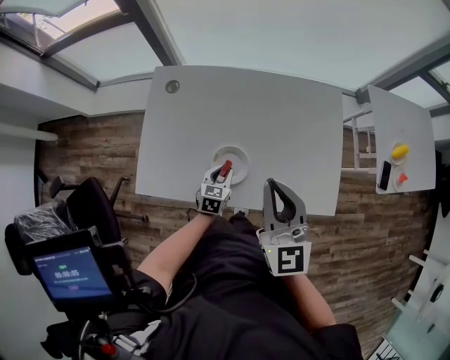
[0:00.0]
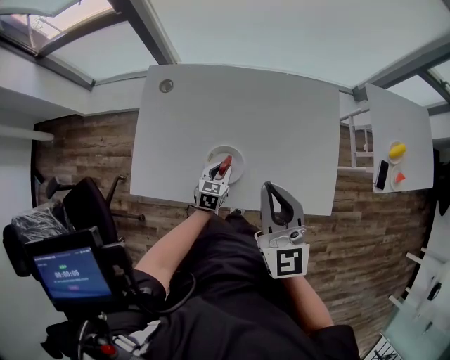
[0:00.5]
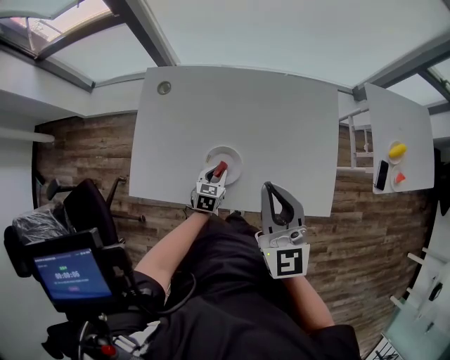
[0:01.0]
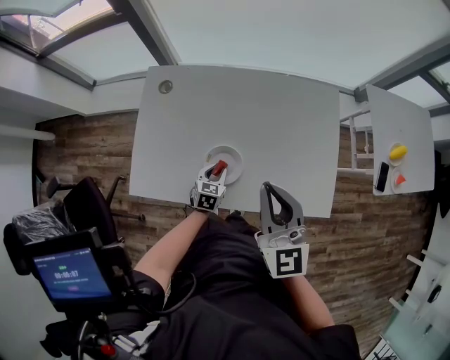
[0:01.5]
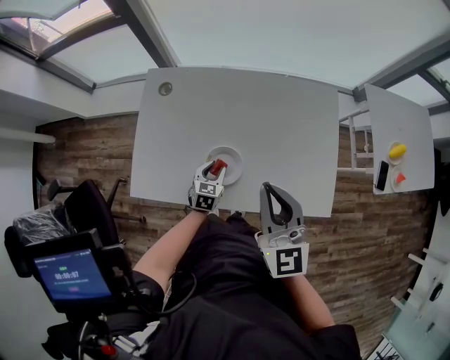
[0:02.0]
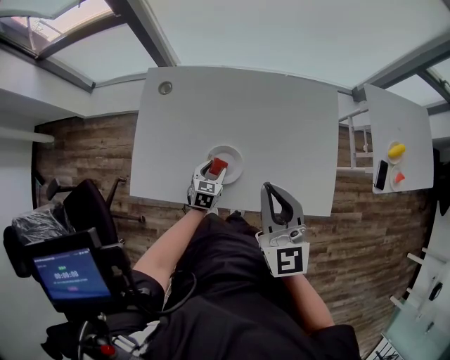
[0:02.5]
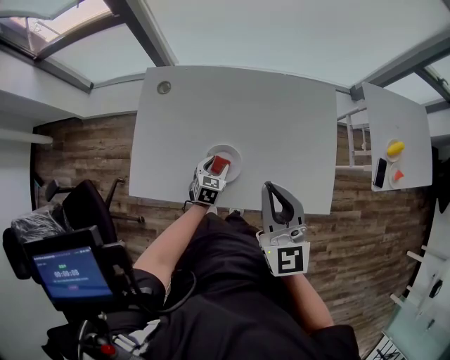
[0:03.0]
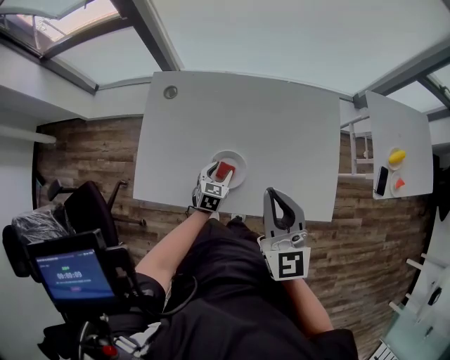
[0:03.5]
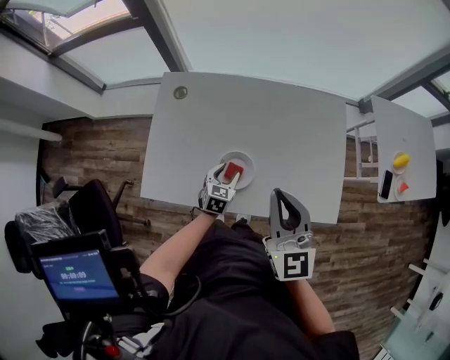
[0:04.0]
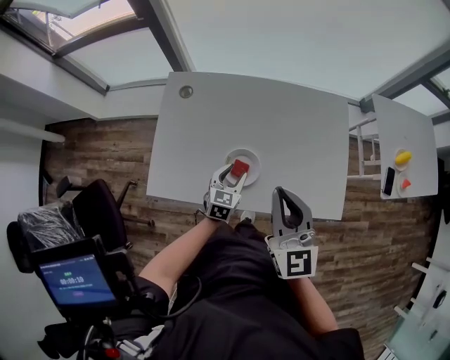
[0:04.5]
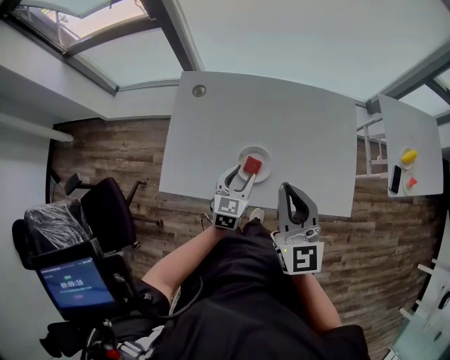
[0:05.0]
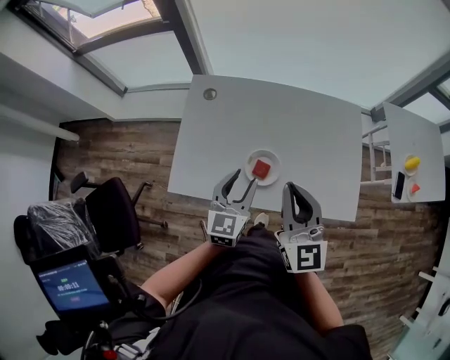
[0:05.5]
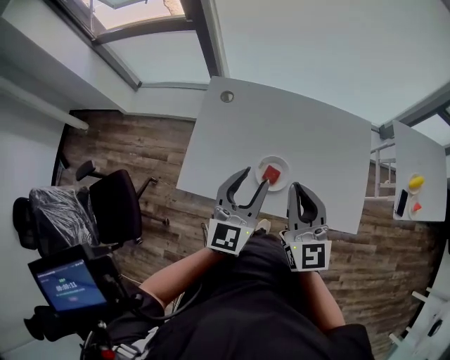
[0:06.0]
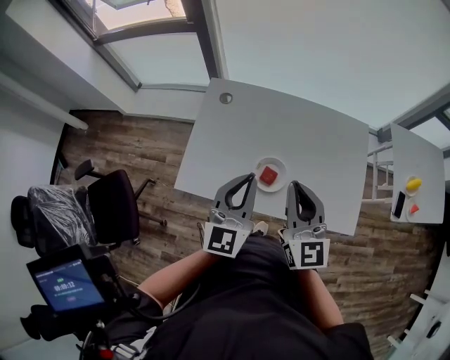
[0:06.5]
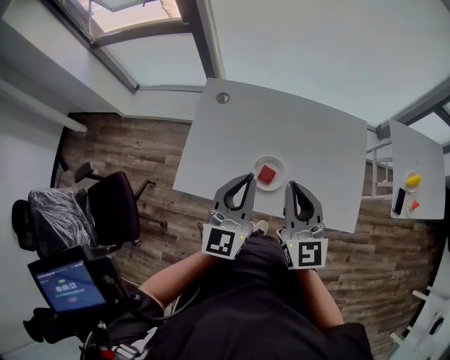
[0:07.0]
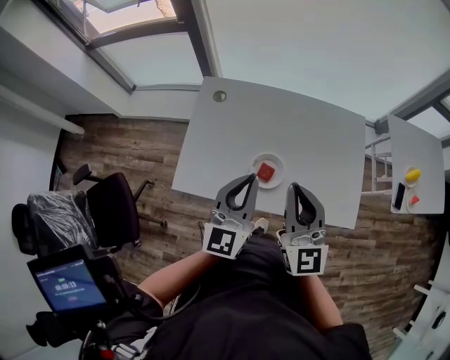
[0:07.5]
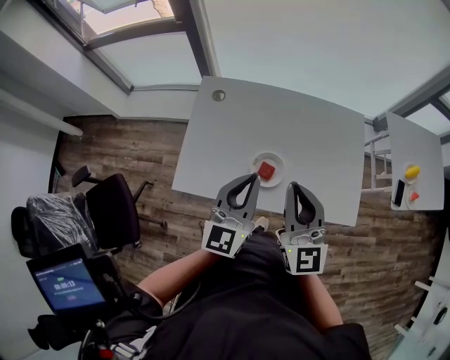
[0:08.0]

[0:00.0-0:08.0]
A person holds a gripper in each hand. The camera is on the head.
0:00.0 to 0:04.0: The grippers move only a little.
0:04.0 to 0:06.0: The right gripper shifts approximately 10 cm to the left. Meanwhile the left gripper moves upward, some 35 cm, and tilts its fingers about 40 degrees upward.
0:06.0 to 0:08.0: The left gripper closes.

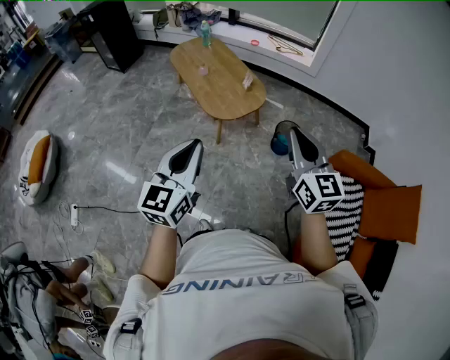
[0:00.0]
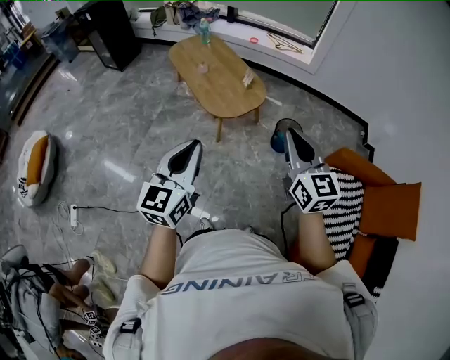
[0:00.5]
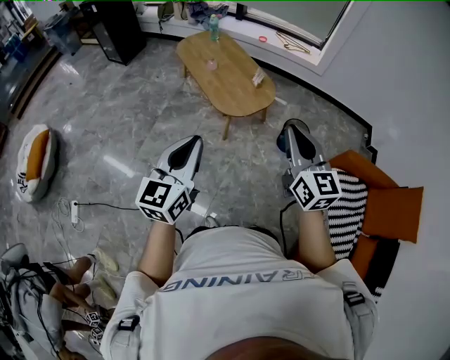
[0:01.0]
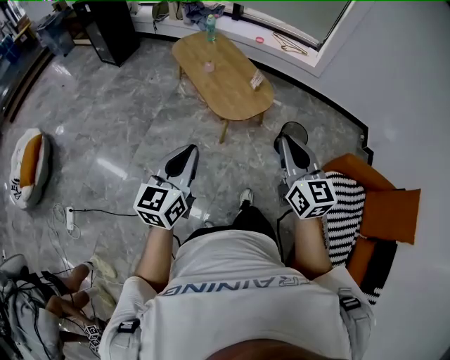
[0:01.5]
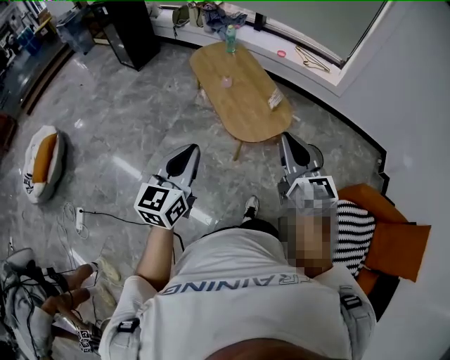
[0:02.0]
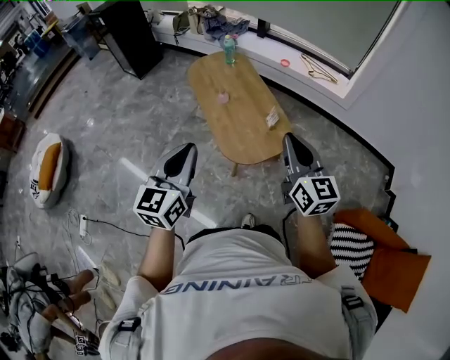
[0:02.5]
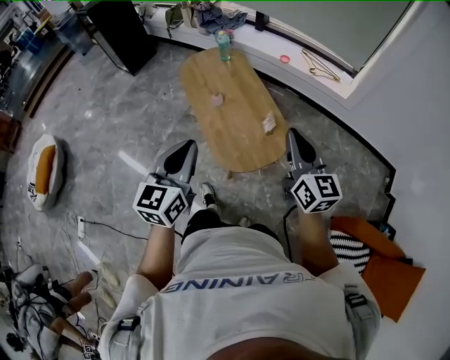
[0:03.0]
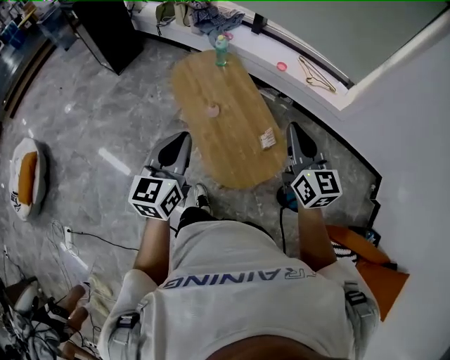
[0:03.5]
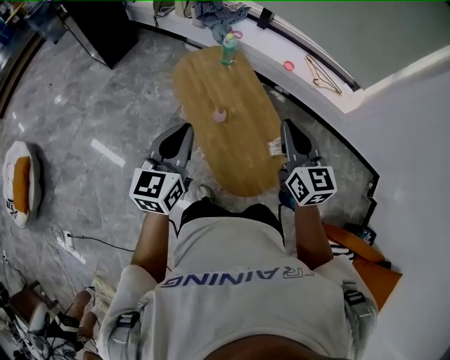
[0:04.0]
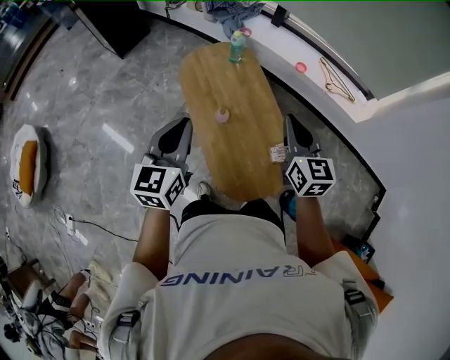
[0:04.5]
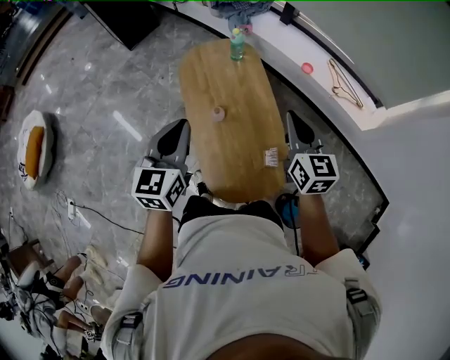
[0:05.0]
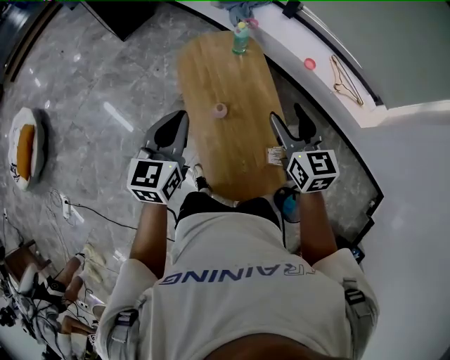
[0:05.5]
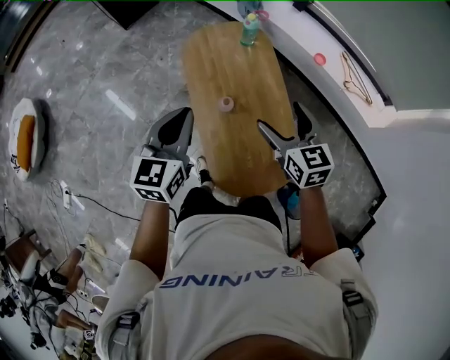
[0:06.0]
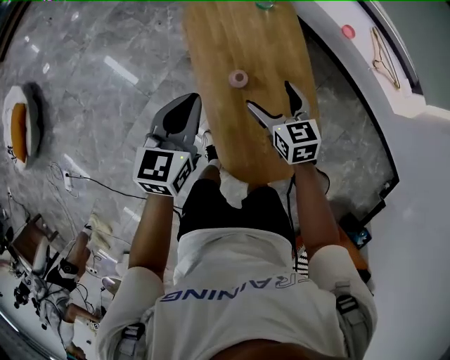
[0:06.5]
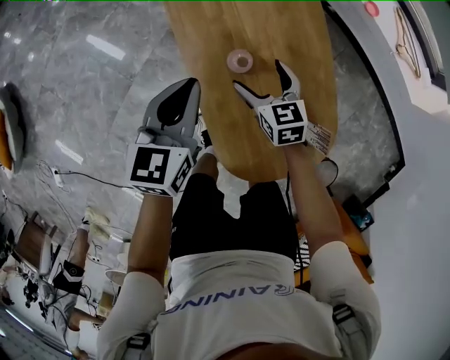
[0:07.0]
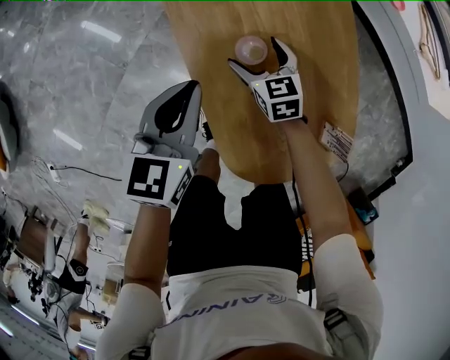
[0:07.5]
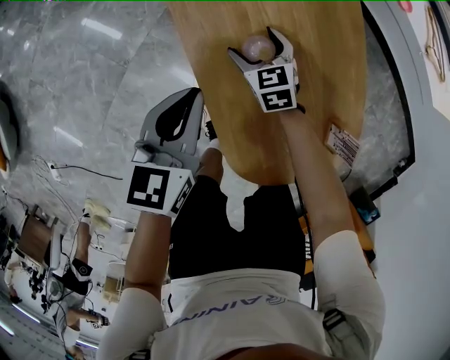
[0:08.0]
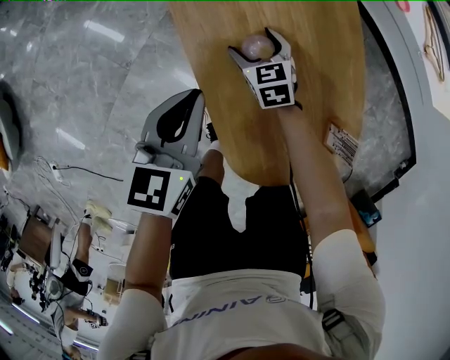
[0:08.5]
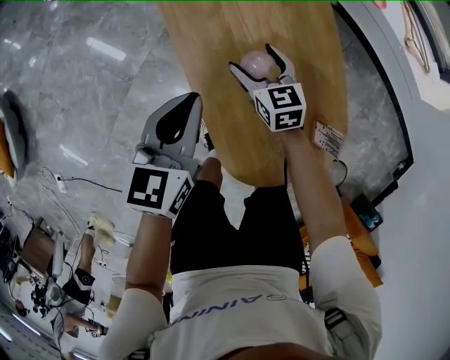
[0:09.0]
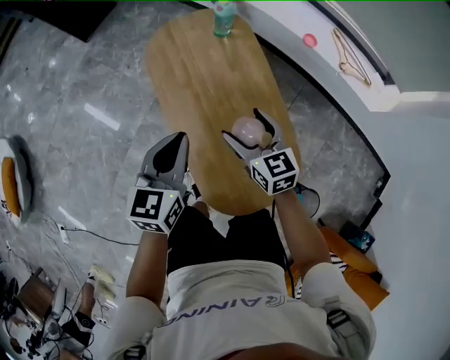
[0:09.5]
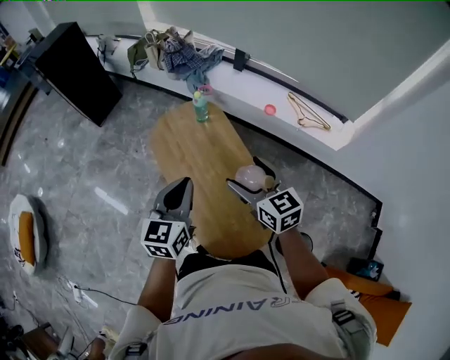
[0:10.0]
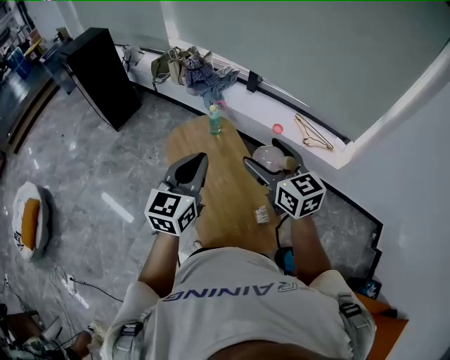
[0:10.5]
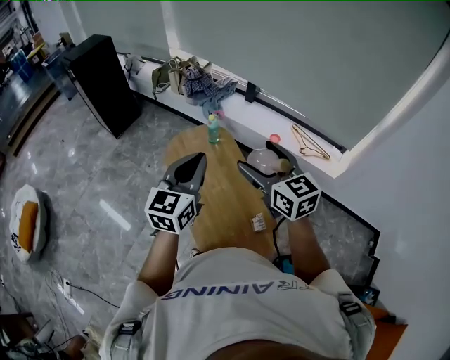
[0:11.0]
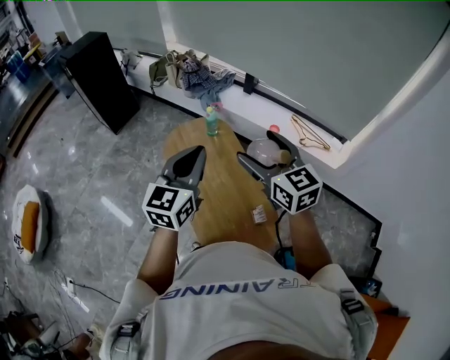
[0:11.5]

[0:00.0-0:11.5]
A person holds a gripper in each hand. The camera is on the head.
0:00.0 to 0:02.0: The two grippers go approximately 20 cm forward and to the left.
0:02.0 to 0:04.0: The pair of grippers is taken forward, approximately 50 cm.
0:04.0 to 0:06.0: The left gripper goes about 15 cm forward, downward and to the right, while the right gripper moves forward and downward, roughly 20 cm, rotates some 30 degrees, and opens up.
0:06.0 to 0:07.5: The two grippers go about 40 cm downward.
0:07.5 to 0:09.5: The grippers both shift upward by approximately 25 cm.
0:09.5 to 0:11.5: Both grippers travel together upward, roughly 35 cm. The left gripper changes its angle by approximately 20 degrees. Meanwhile the right gripper turns by some 20 degrees.

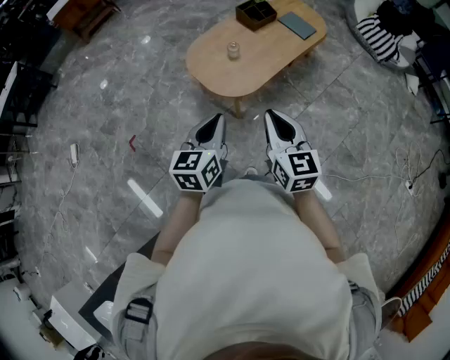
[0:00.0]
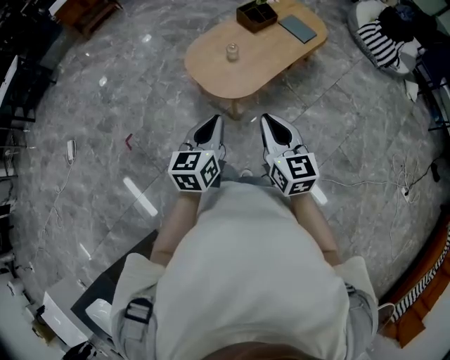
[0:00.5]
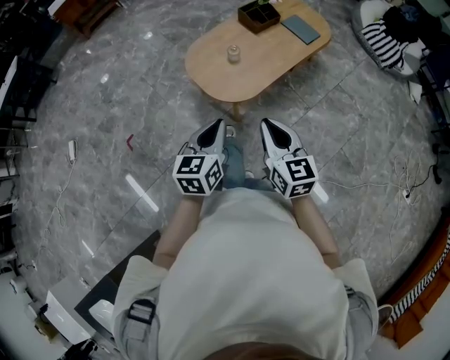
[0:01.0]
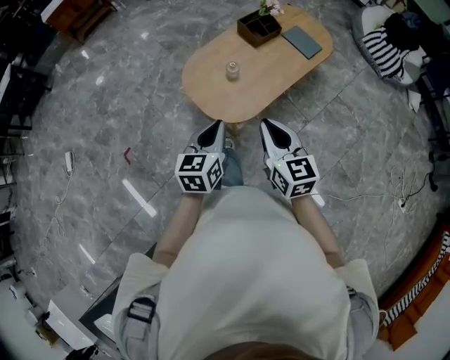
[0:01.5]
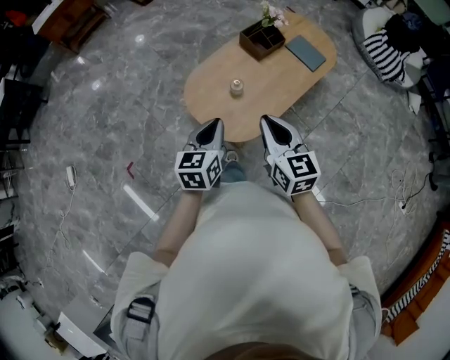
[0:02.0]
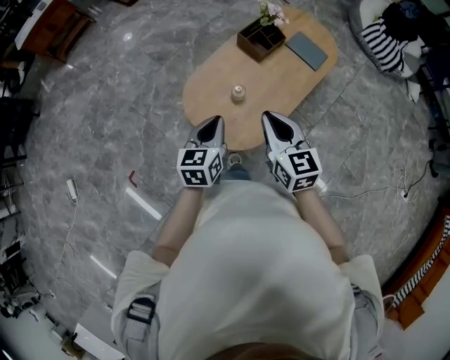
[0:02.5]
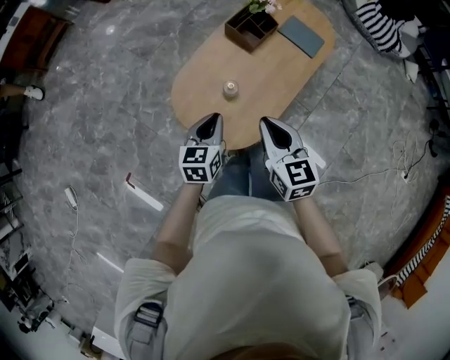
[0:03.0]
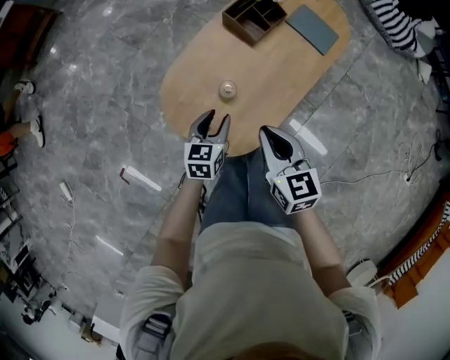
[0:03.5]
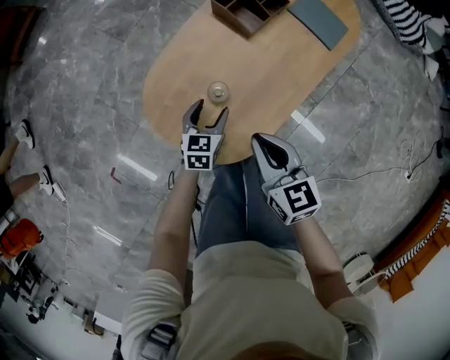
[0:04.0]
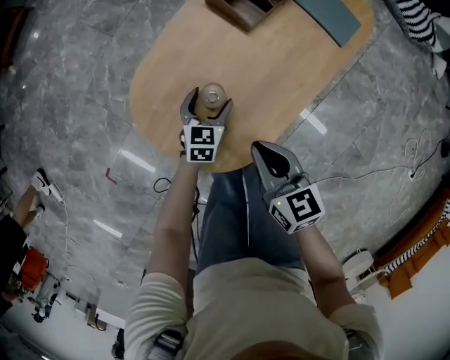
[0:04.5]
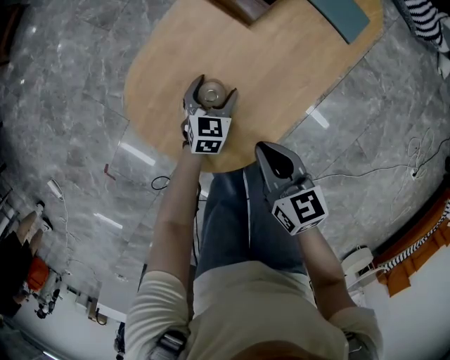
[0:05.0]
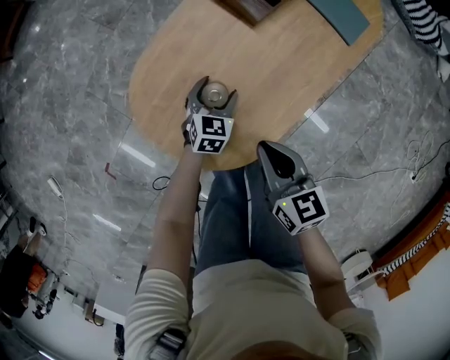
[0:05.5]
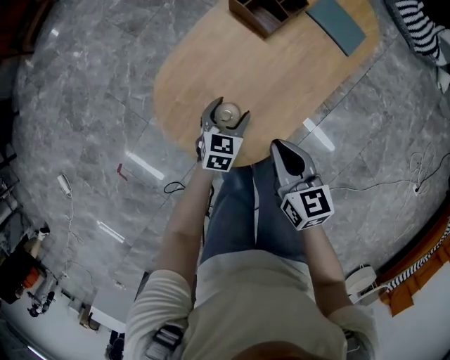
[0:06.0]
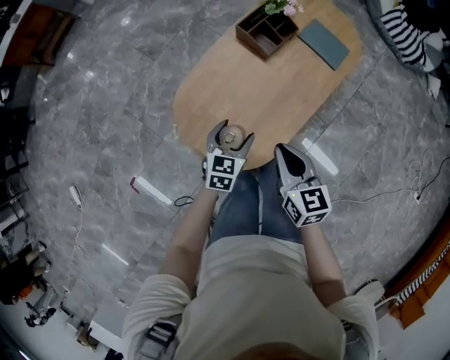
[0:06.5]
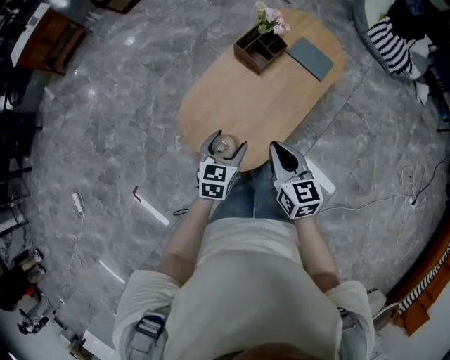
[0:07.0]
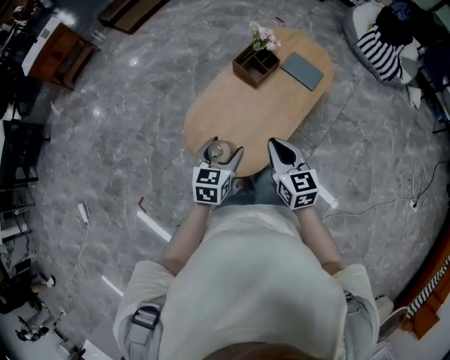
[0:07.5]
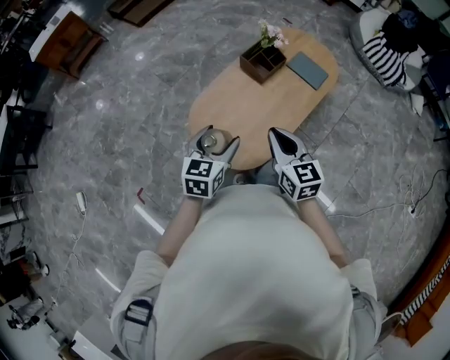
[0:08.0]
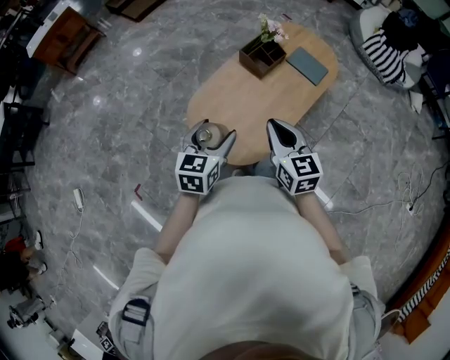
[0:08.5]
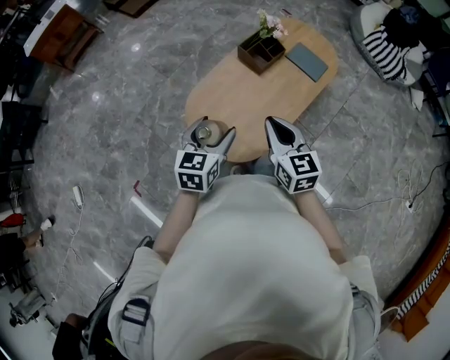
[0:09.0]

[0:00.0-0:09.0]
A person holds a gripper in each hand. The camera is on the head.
0:00.0 to 0:02.0: Both grippers travel together forward, roughly 25 cm.
0:02.0 to 0:04.5: The right gripper heads downward and forward, covering some 30 cm, and turns by some 20 degrees, while the left gripper shifts about 50 cm downward and forward, changes its angle by approximately 20 degrees, and opens.
0:04.5 to 0:07.0: The right gripper is displaced upward by roughly 15 cm; the left gripper travels upward and backward by approximately 30 cm.
0:07.0 to 0:09.0: The left gripper goes roughly 15 cm upward, while the right gripper shifts roughly 10 cm upward.
